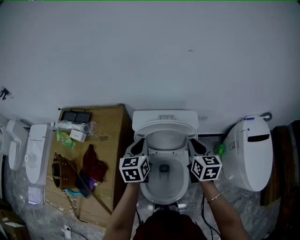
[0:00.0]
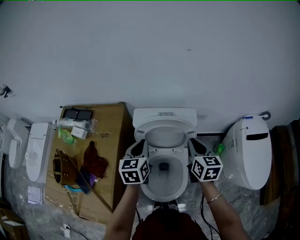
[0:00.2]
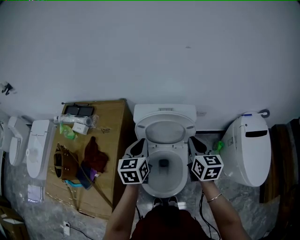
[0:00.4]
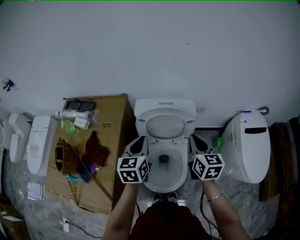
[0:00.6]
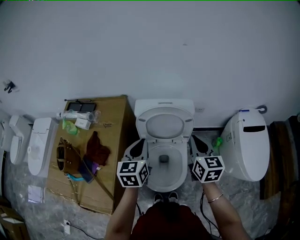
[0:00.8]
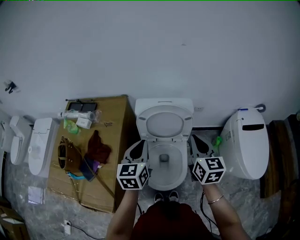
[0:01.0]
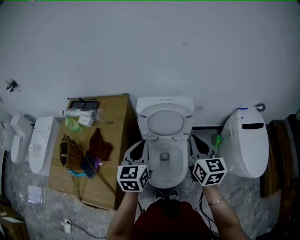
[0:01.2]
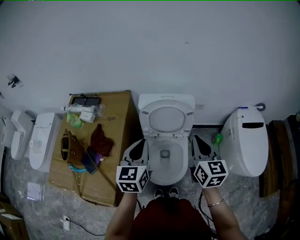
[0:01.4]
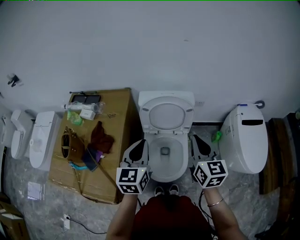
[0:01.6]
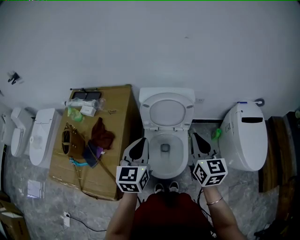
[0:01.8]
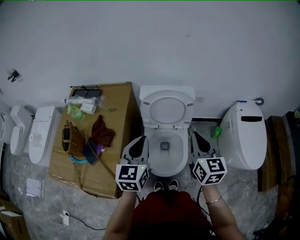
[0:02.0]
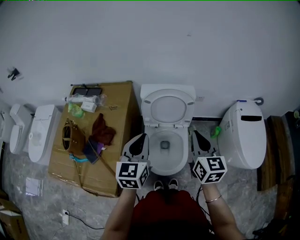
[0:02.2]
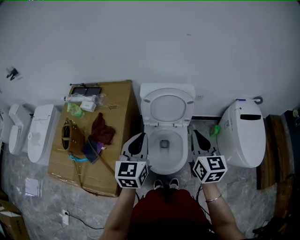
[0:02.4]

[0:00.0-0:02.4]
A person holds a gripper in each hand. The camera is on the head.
0:00.0 to 0:01.2: The two grippers go approximately 20 cm backward and upward.
0:01.2 to 0:02.4: Both grippers move backward, about 5 cm.

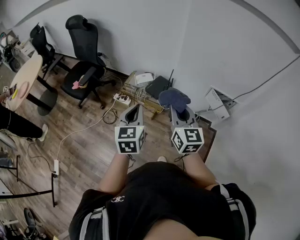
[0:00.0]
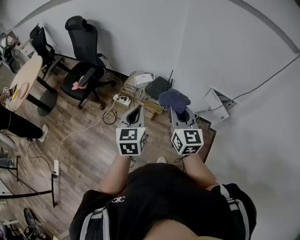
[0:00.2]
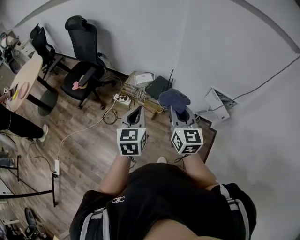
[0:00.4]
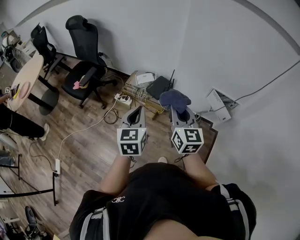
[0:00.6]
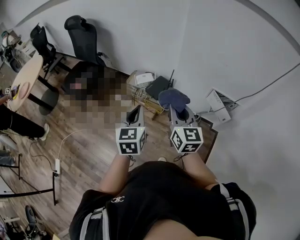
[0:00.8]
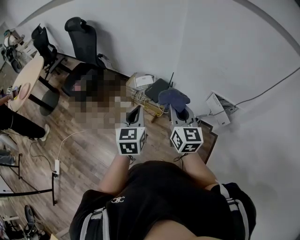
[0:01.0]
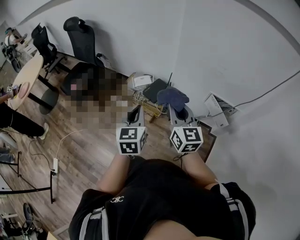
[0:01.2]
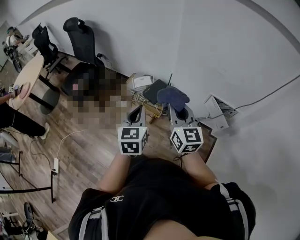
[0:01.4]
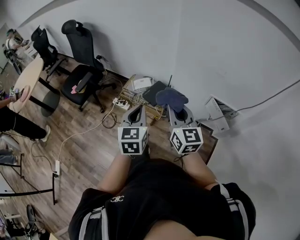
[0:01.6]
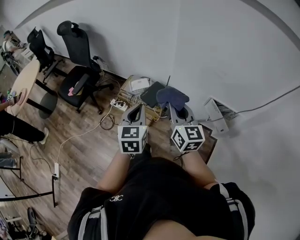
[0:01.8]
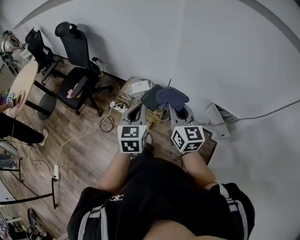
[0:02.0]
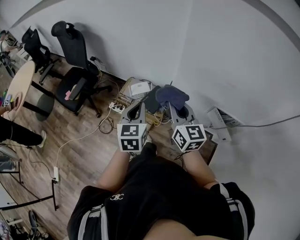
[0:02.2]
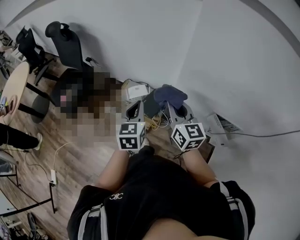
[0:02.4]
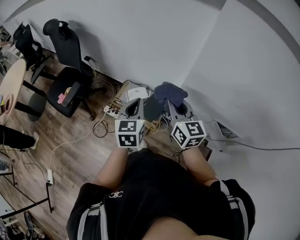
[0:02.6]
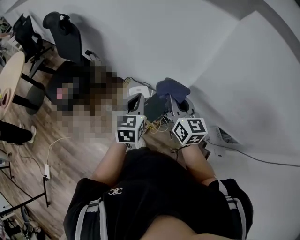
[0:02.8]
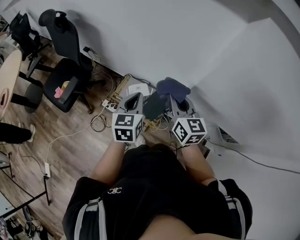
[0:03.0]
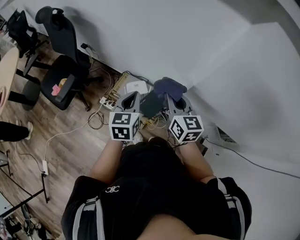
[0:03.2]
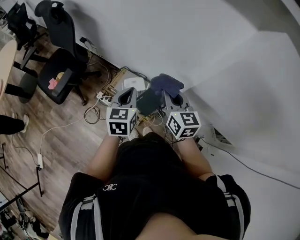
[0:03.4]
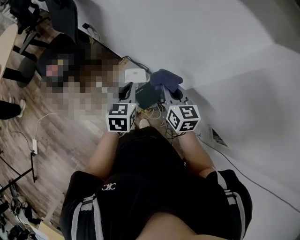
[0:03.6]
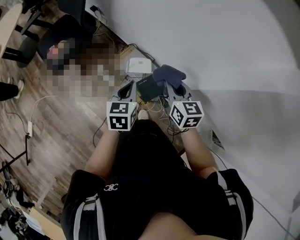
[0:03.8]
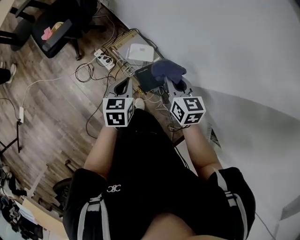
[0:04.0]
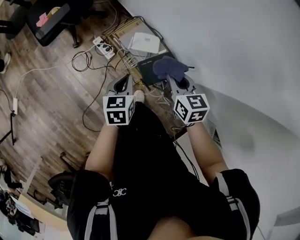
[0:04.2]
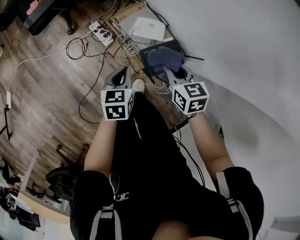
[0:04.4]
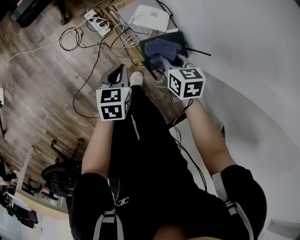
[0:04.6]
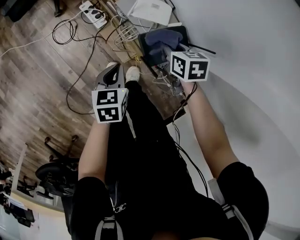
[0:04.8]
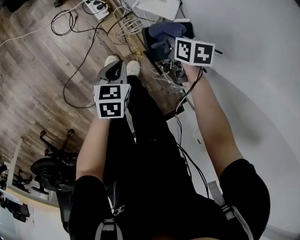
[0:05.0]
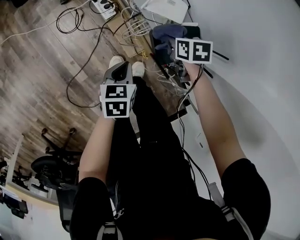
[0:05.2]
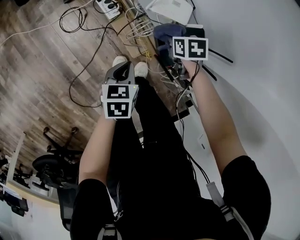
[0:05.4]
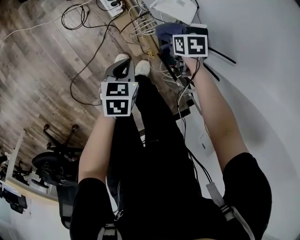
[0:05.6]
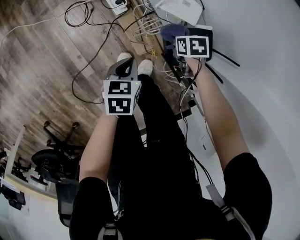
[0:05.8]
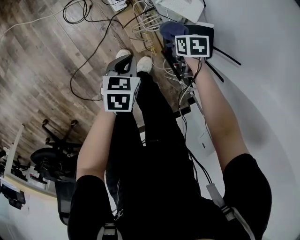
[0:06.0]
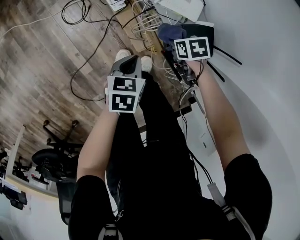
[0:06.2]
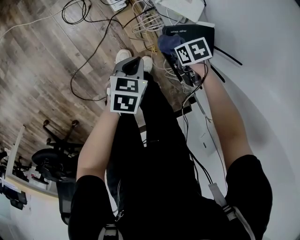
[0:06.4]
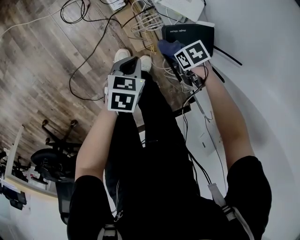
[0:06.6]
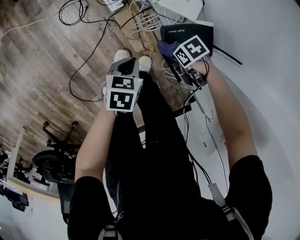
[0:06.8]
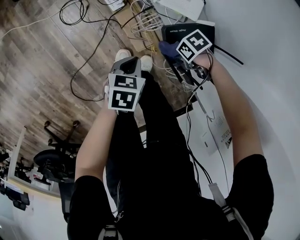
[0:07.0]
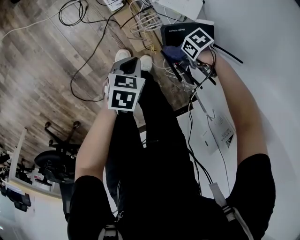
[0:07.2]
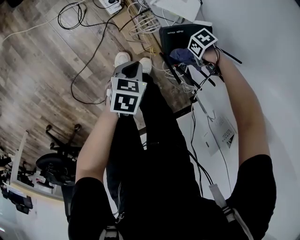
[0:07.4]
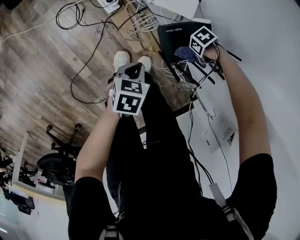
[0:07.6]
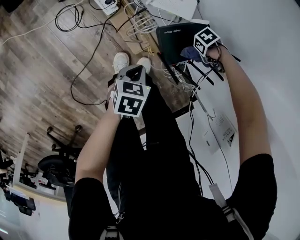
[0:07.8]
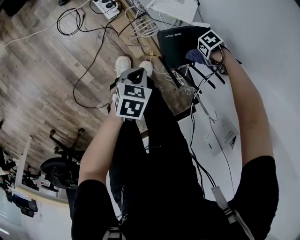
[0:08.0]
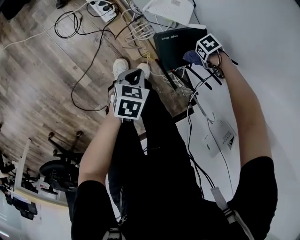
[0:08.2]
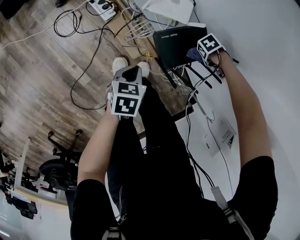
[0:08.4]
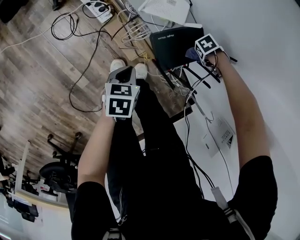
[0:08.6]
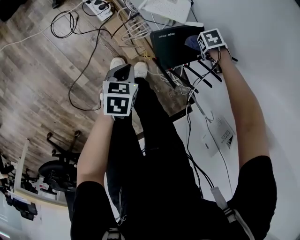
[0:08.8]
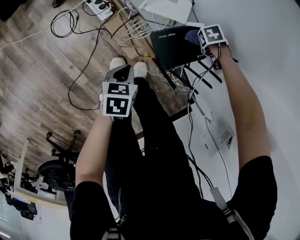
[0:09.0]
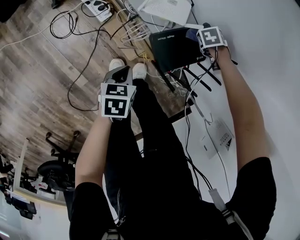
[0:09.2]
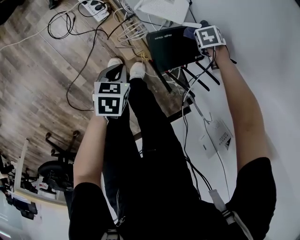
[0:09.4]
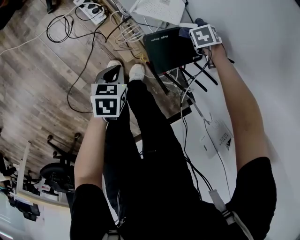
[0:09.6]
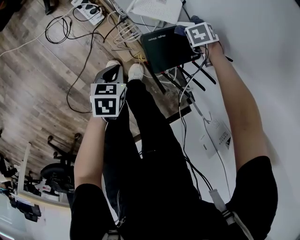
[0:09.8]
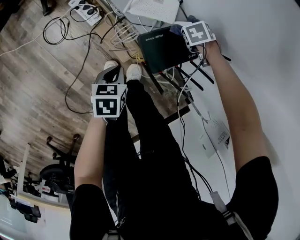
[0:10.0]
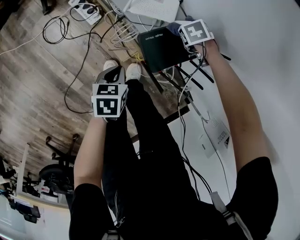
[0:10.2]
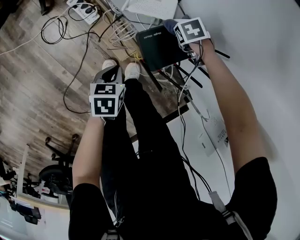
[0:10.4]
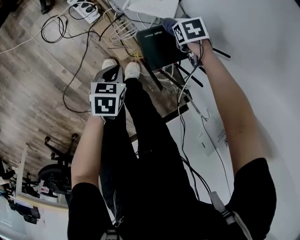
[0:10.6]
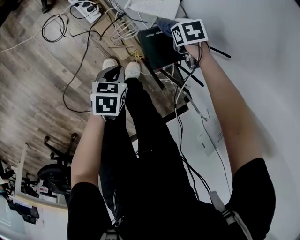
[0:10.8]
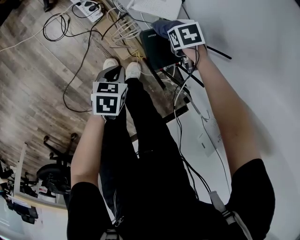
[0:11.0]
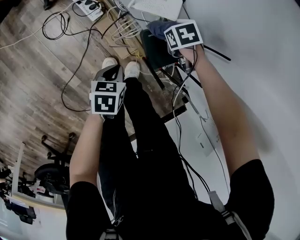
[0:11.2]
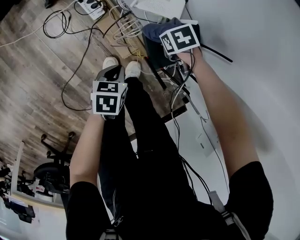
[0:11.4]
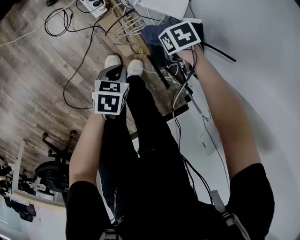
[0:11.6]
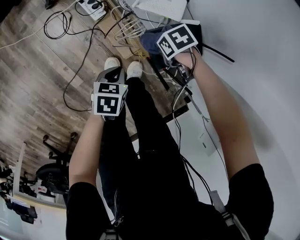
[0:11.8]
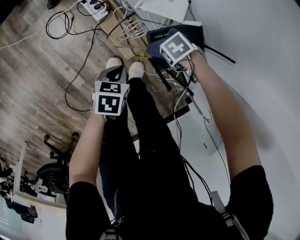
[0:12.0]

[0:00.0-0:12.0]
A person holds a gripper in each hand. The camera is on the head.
0:00.0 to 0:01.6: The left gripper ends up some 15 cm from where it was.
0:01.6 to 0:03.0: The left gripper ends up approximately 35 cm from where it was.
0:03.0 to 0:04.4: The left gripper heads downward, covering roughly 30 cm, and rotates about 40 degrees.
0:04.4 to 0:06.0: The left gripper shifts some 15 cm downward.
0:06.0 to 0:07.6: The left gripper shifts by some 5 cm.

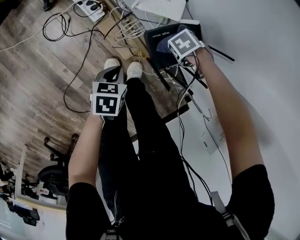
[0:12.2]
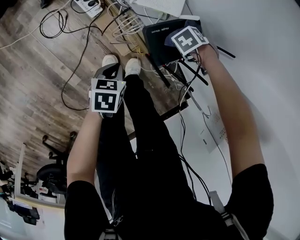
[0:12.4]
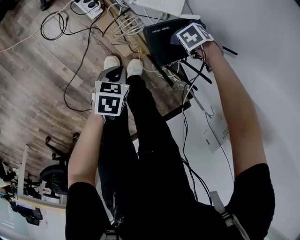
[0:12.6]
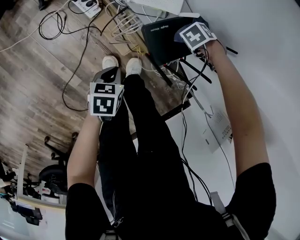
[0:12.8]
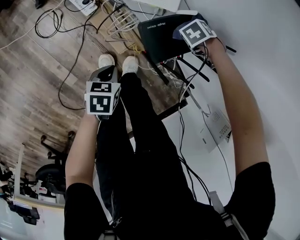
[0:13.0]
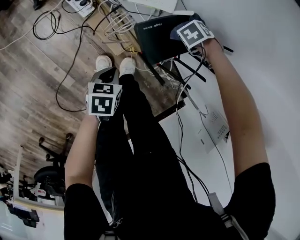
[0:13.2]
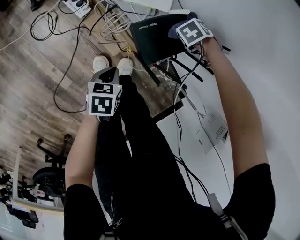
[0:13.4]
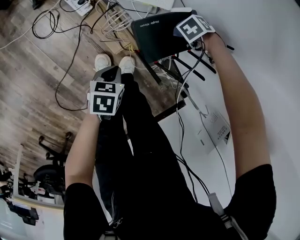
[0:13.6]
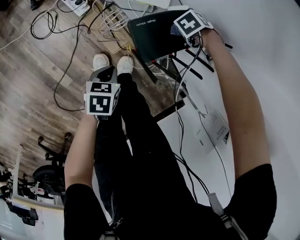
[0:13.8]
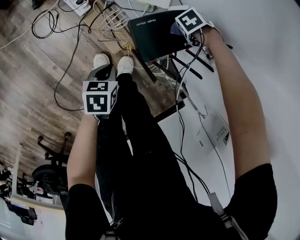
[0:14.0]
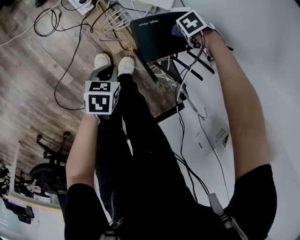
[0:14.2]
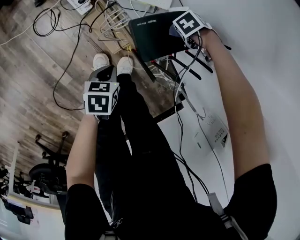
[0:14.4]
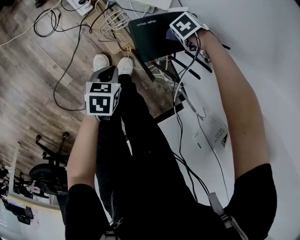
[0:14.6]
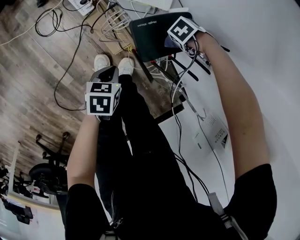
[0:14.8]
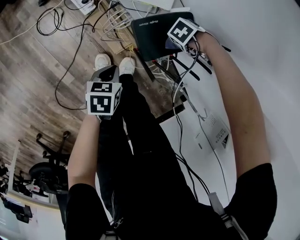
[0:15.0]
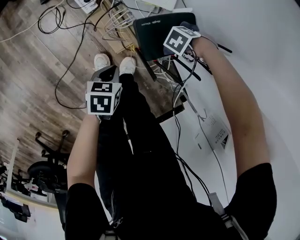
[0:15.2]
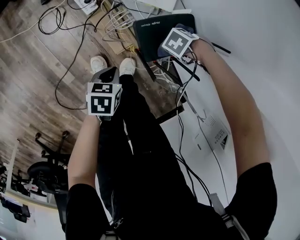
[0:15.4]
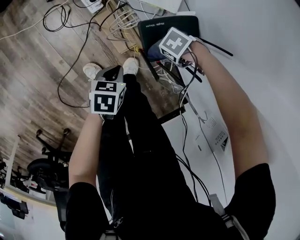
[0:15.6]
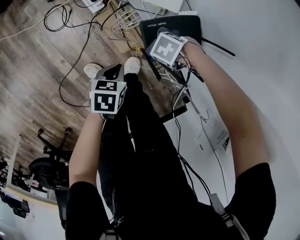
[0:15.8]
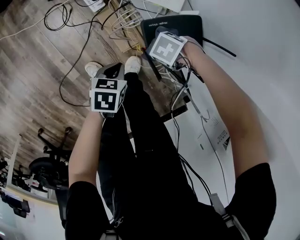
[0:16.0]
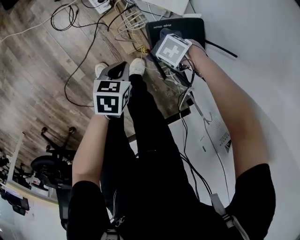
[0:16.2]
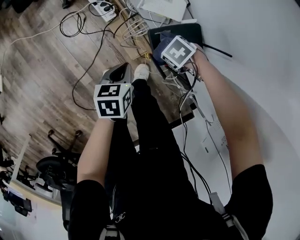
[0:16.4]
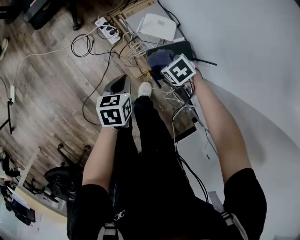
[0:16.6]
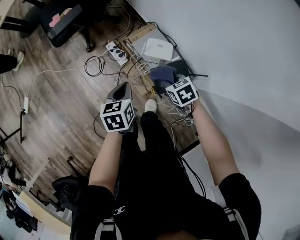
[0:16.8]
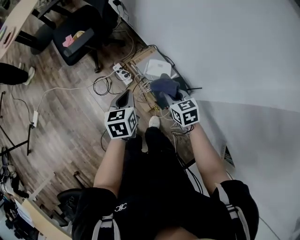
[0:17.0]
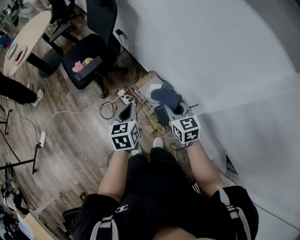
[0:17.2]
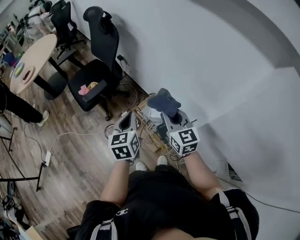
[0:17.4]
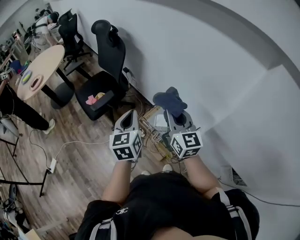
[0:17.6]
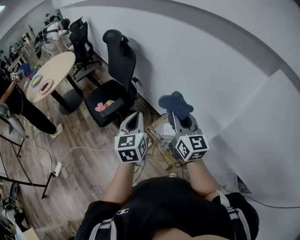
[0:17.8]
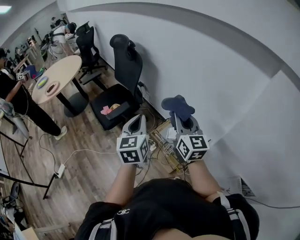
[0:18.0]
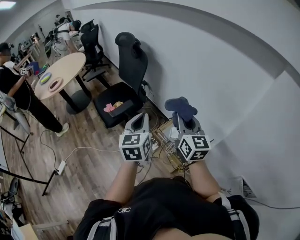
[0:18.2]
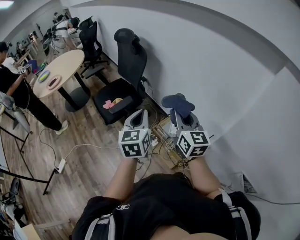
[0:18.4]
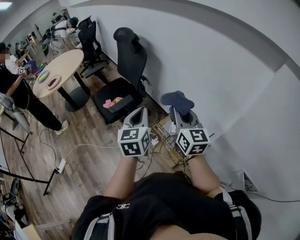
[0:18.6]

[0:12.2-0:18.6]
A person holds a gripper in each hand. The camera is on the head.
0:12.2 to 0:13.8: The left gripper moves some 5 cm.
0:15.4 to 0:17.0: The left gripper travels upward by roughly 40 cm, and swivels approximately 40 degrees.
0:17.0 to 0:18.6: The left gripper is displaced upward by approximately 30 cm, and changes its angle by some 30 degrees.

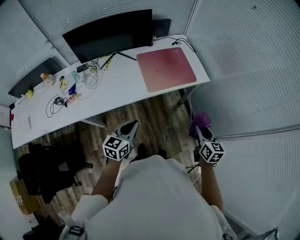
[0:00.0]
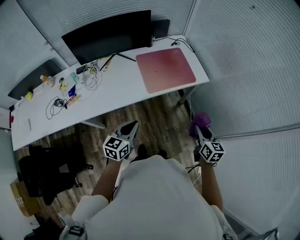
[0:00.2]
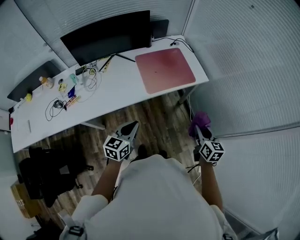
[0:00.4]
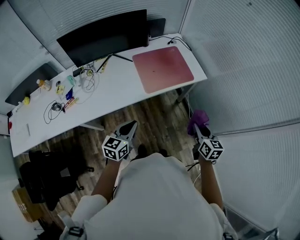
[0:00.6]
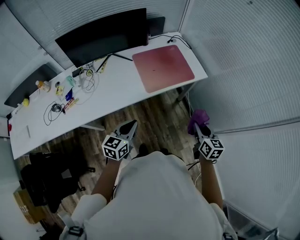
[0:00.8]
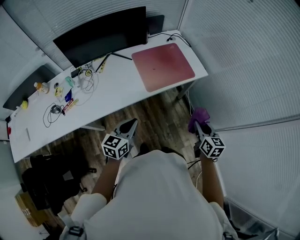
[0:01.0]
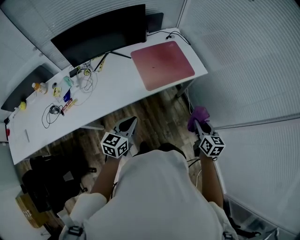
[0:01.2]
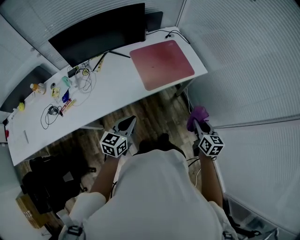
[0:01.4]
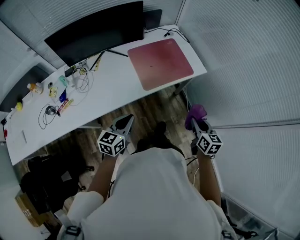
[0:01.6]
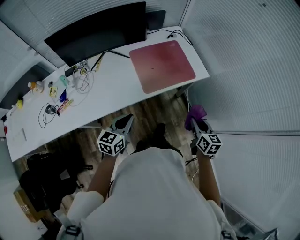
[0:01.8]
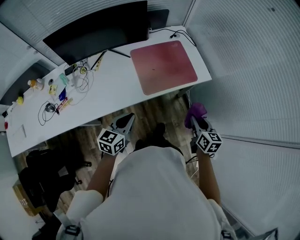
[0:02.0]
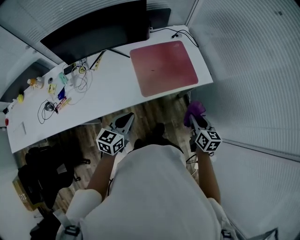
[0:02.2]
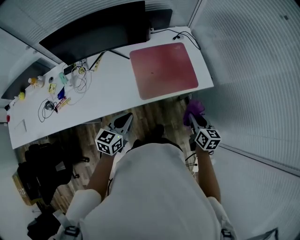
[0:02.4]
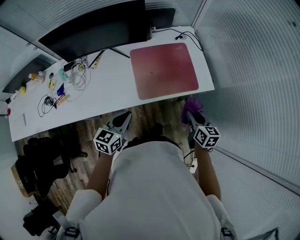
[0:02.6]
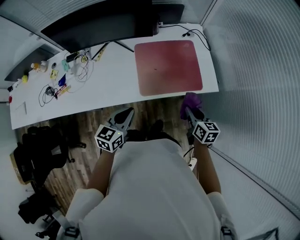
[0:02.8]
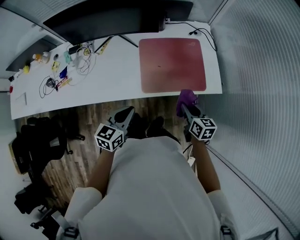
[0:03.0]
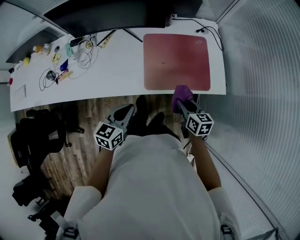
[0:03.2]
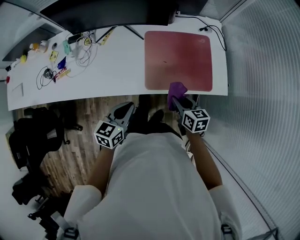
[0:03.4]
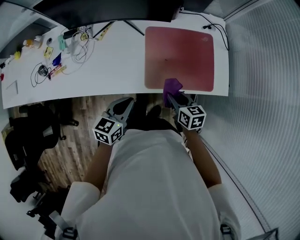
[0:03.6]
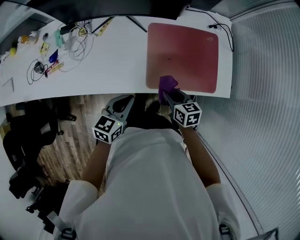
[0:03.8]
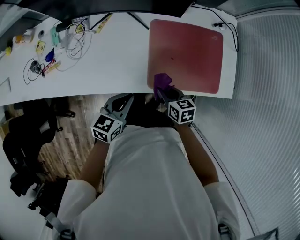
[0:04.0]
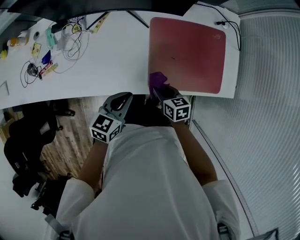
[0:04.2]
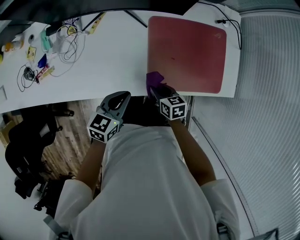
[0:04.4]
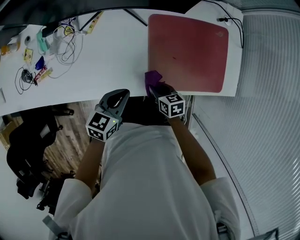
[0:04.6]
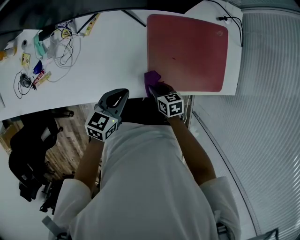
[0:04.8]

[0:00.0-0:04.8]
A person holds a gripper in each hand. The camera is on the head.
0:00.0 to 0:01.6: The left gripper heads forward, covering roughly 5 cm. Meanwhile the right gripper shifts by roughly 5 cm.
0:01.6 to 0:03.2: The left gripper shifts by about 15 cm, and rotates approximately 20 degrees. Meanwhile the right gripper shifts by approximately 25 cm, and swivels some 30 degrees.
0:03.2 to 0:04.8: The left gripper shifts some 20 cm forward, downward and to the left. The right gripper is displaced downward, to the left and forward by approximately 30 cm, and swivels about 20 degrees.
